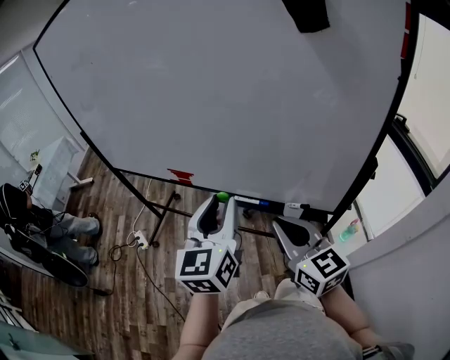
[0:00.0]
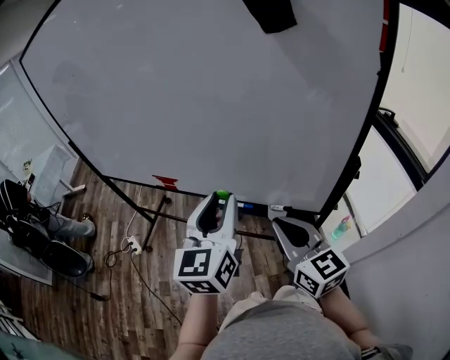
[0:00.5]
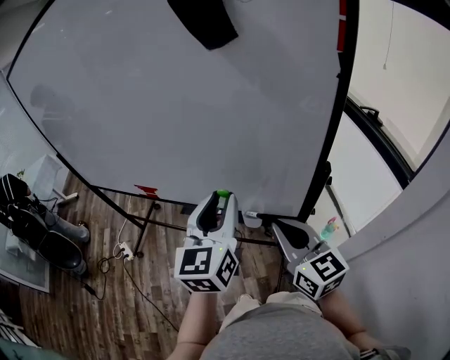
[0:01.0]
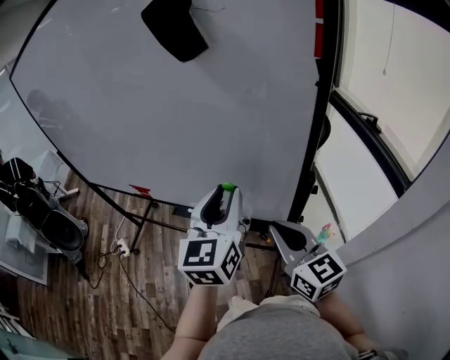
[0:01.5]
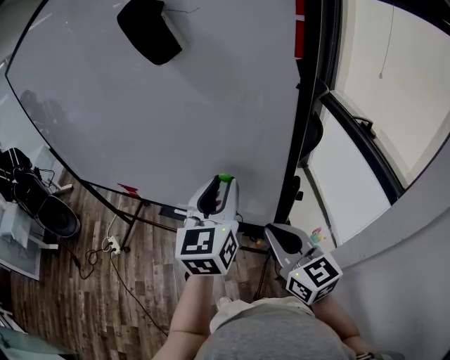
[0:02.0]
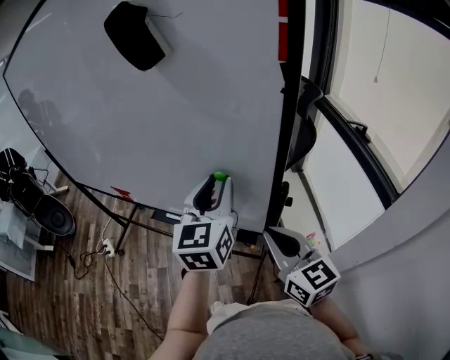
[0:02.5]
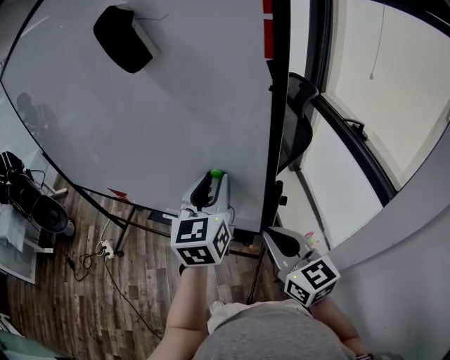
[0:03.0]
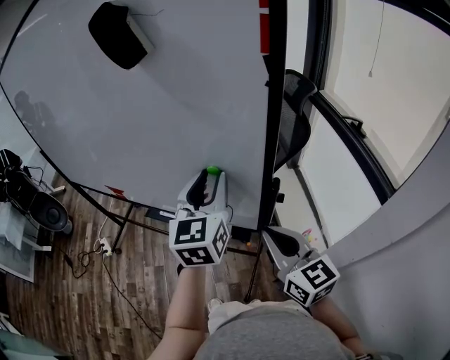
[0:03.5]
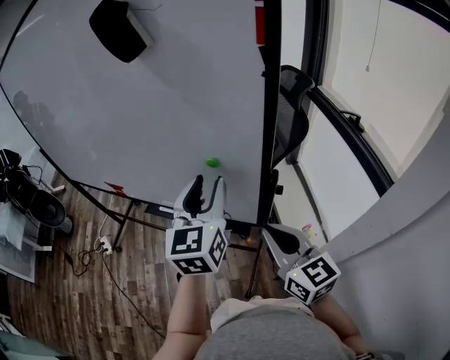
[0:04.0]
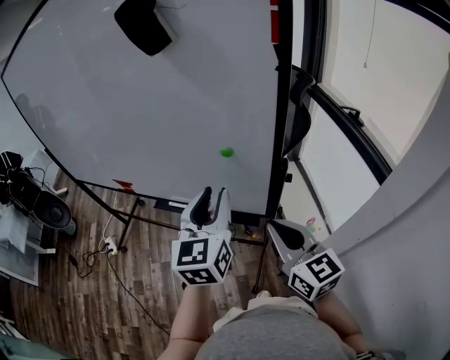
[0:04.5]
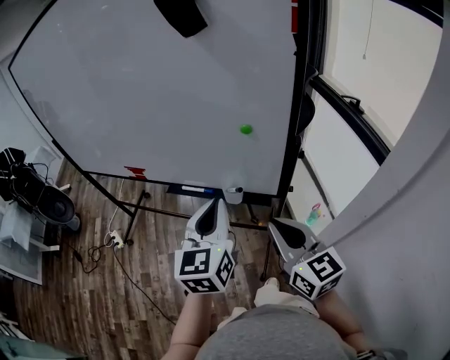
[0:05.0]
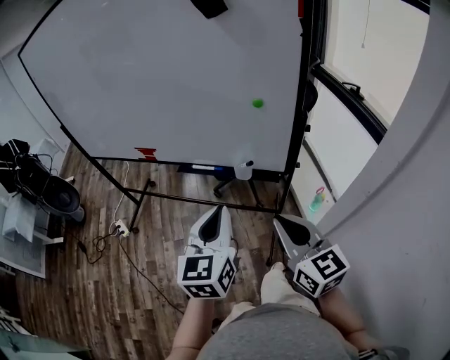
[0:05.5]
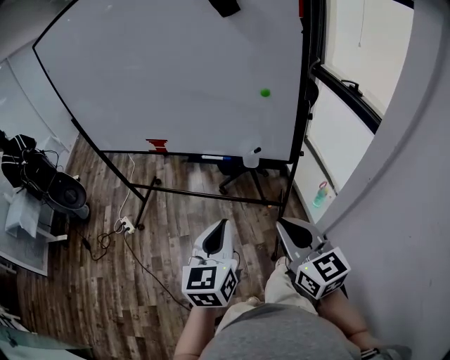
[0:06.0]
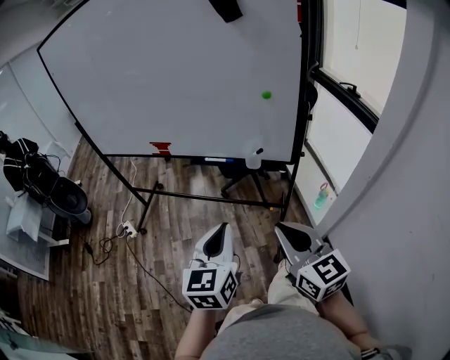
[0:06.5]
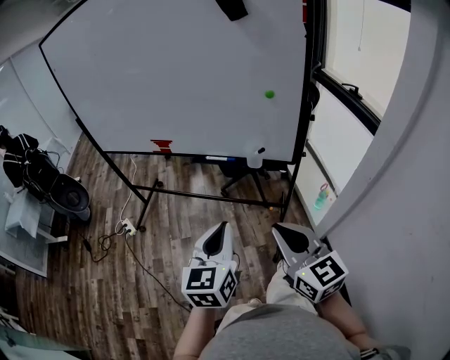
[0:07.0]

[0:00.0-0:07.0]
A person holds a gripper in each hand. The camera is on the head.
0:00.0 to 0:02.0: Both grippers travel together to the right, roughly 25 cm.
0:02.0 to 0:03.5: The grippers stay close to where they were, moving slightly.
0:03.5 to 0:05.0: The right gripper goes roughly 15 cm to the left and backward, while the left gripper goes about 20 cm backward and to the left, and closes.
0:05.0 to 0:07.0: The grippers both shift backward and to the left by about 20 cm.

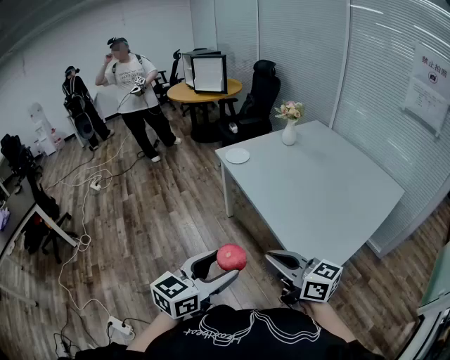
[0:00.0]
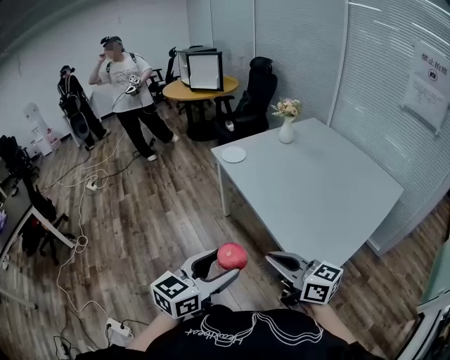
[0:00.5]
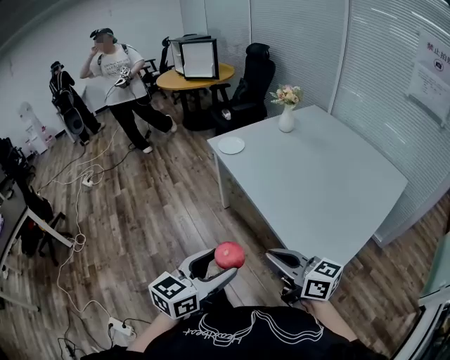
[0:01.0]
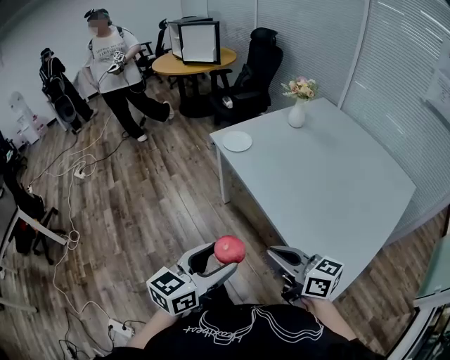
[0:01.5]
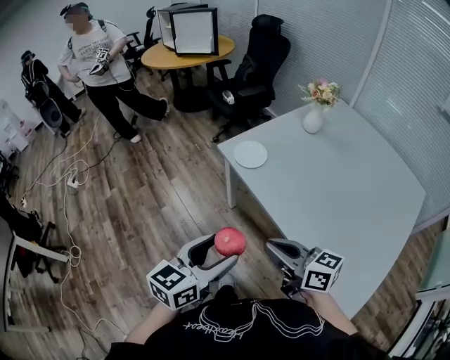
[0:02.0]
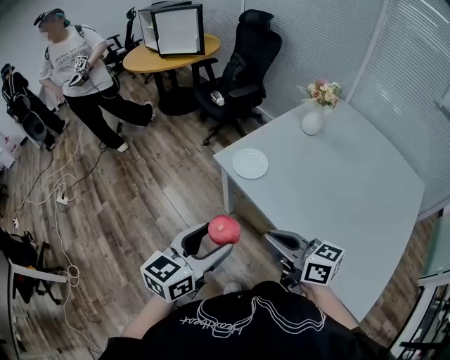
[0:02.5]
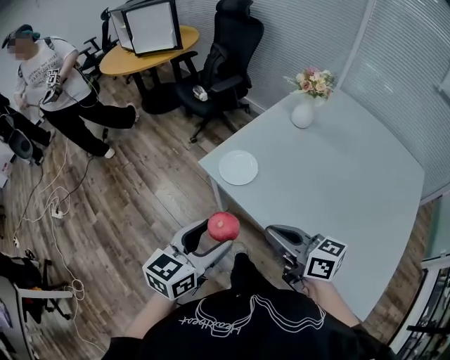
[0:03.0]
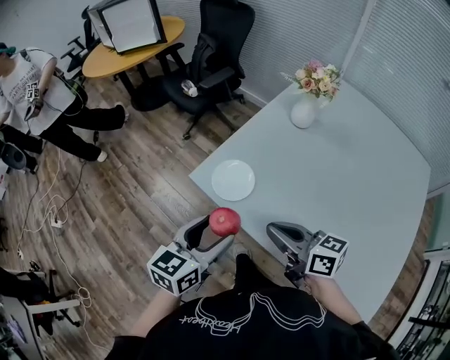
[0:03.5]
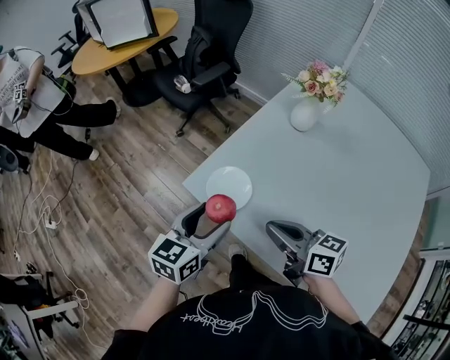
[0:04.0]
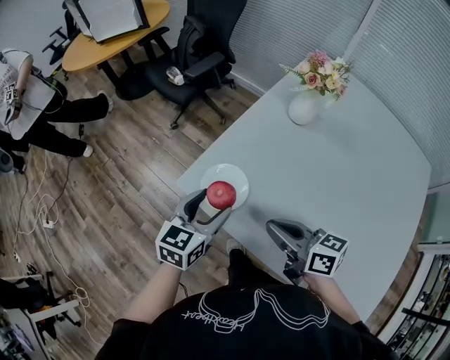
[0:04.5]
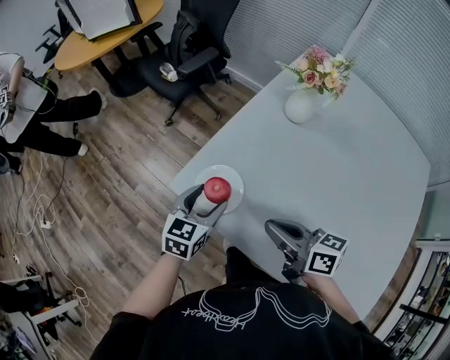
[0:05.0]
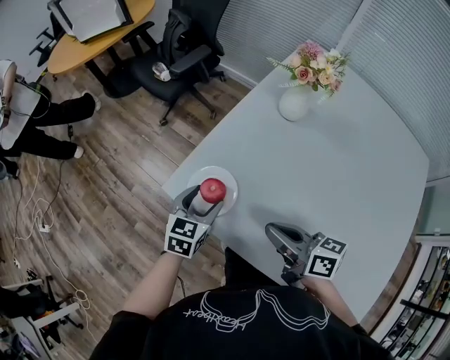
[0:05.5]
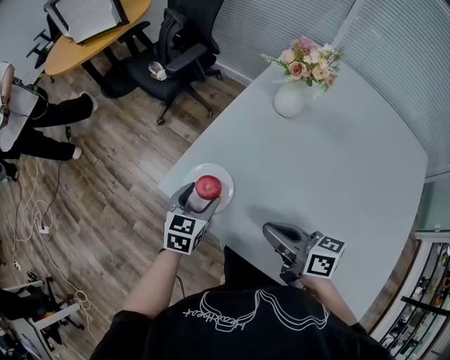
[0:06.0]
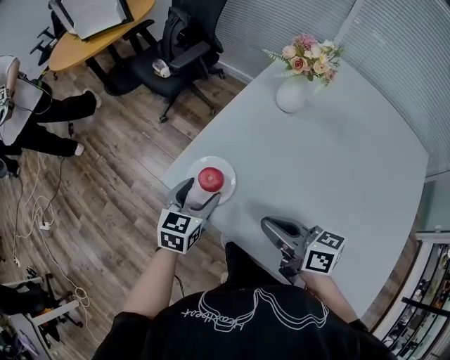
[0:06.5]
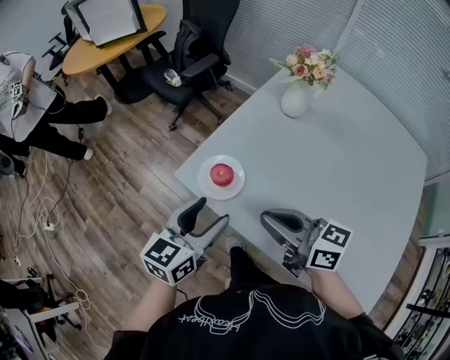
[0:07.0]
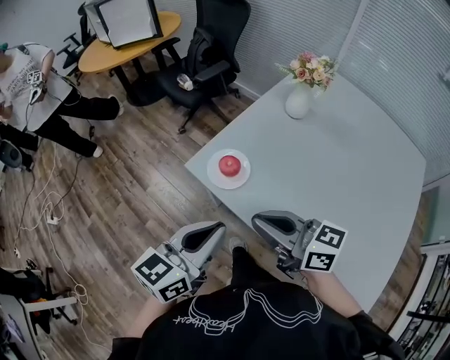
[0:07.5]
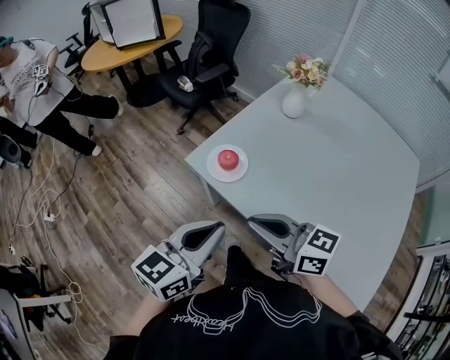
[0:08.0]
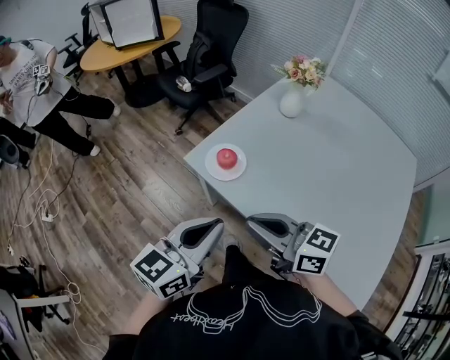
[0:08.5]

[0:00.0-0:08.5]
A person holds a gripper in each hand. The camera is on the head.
0:00.0 to 0:02.0: The two grippers go some 35 cm forward.
0:02.0 to 0:04.0: The grippers both shift forward by about 35 cm.
0:04.0 to 0:06.5: The left gripper shifts about 15 cm downward and forward.
0:06.5 to 0:08.5: The left gripper heads backward and upward, covering roughly 30 cm, swivels about 30 degrees, and closes, while the right gripper shifts about 20 cm backward, upward and to the left, and swivels about 20 degrees.

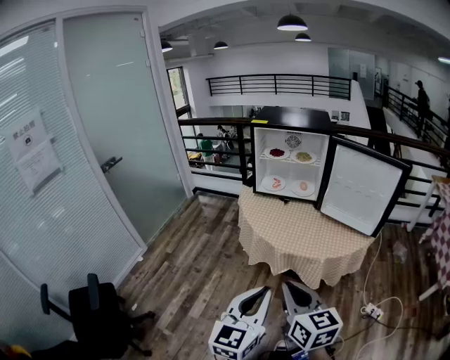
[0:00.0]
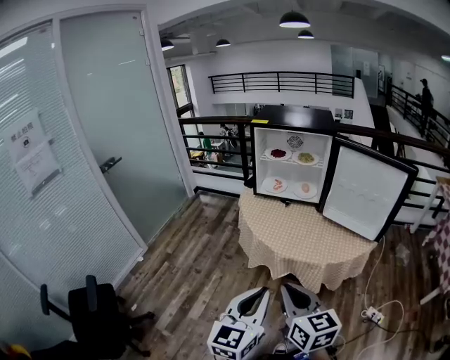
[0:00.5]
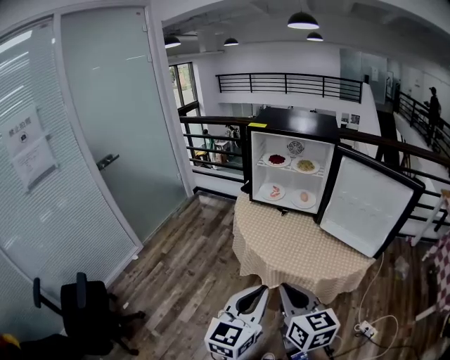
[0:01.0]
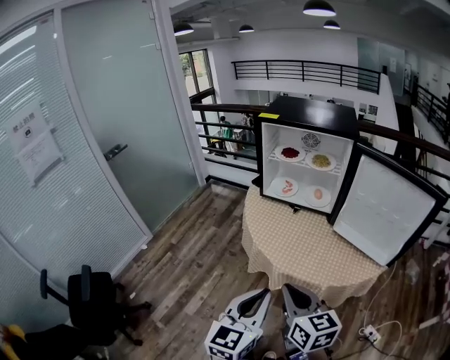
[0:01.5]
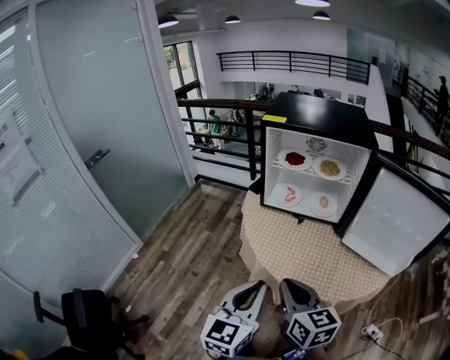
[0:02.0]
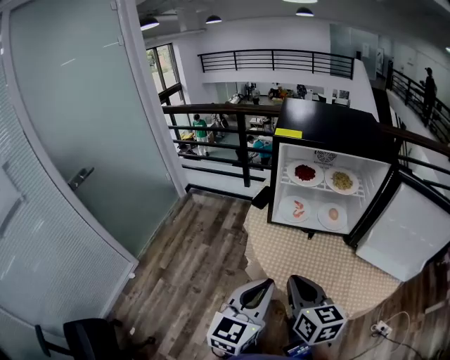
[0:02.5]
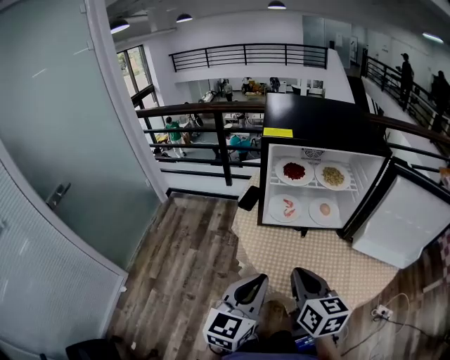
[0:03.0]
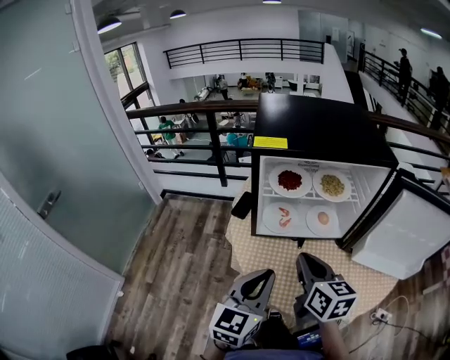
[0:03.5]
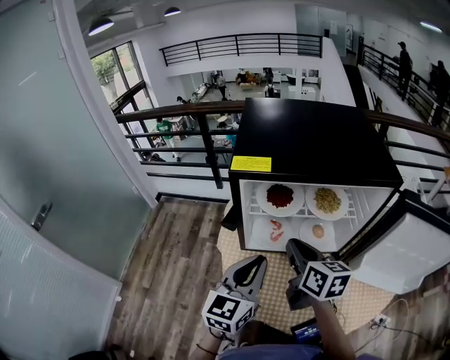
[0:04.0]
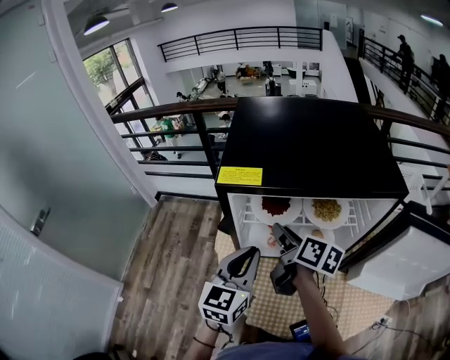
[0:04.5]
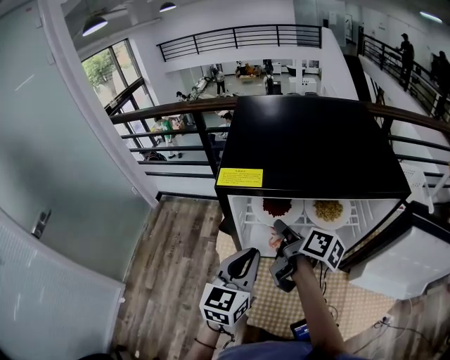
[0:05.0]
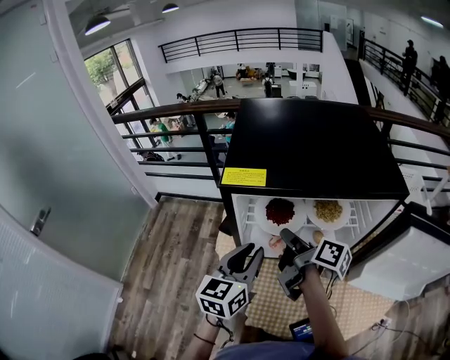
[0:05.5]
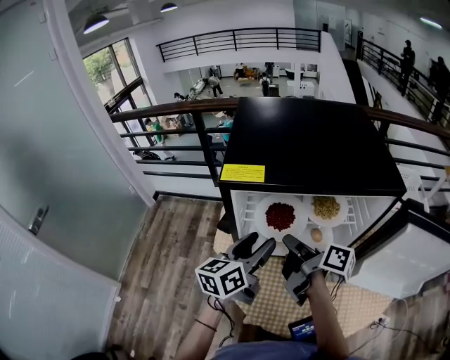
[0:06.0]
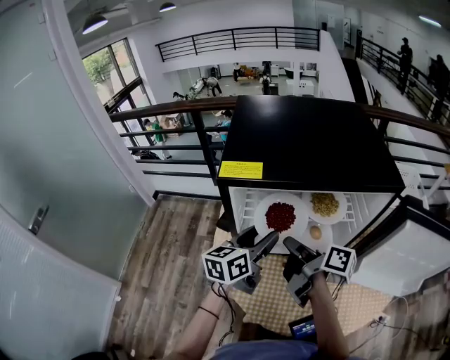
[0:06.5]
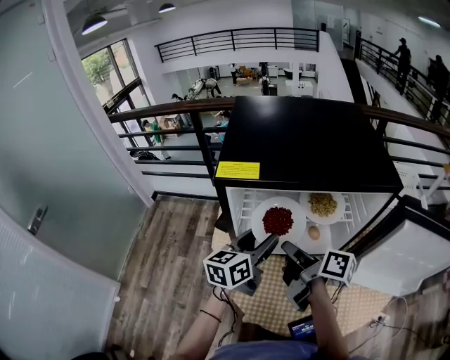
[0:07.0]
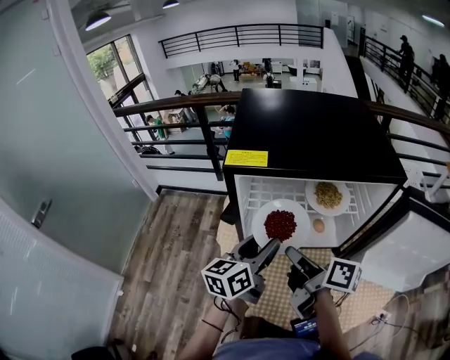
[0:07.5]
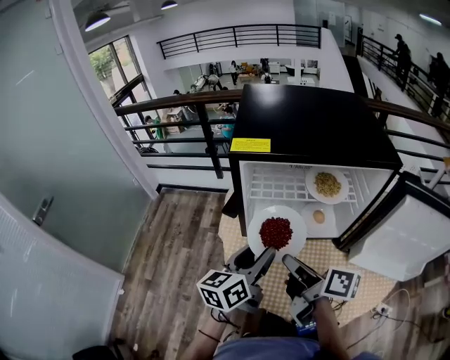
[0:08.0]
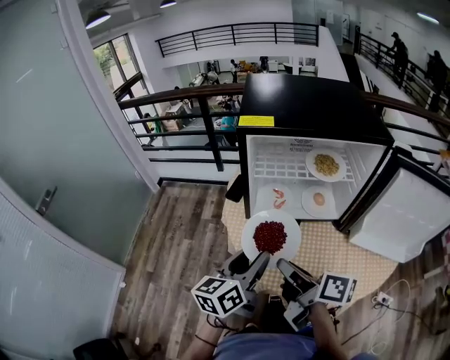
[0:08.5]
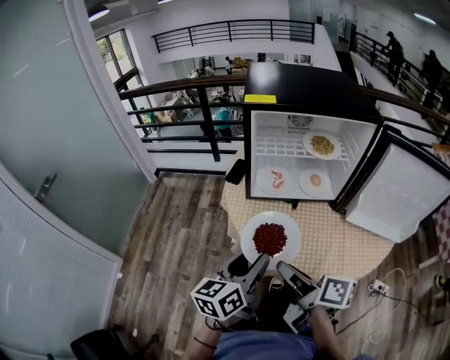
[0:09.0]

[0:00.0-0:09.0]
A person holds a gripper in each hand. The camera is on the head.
0:00.0 to 0:02.0: Both grippers travel together forward, about 25 cm.
0:02.0 to 0:04.5: The two grippers go approximately 40 cm forward. The right gripper twists roughly 40 degrees clockwise, seen from behind, and opens.
0:04.5 to 0:07.0: The left gripper is displaced forward by about 5 cm, turns by some 30 degrees, and opens. Meanwhile the right gripper shifts about 5 cm backward, and closes up.
0:07.0 to 0:09.0: The grippers both shift backward by about 30 cm.

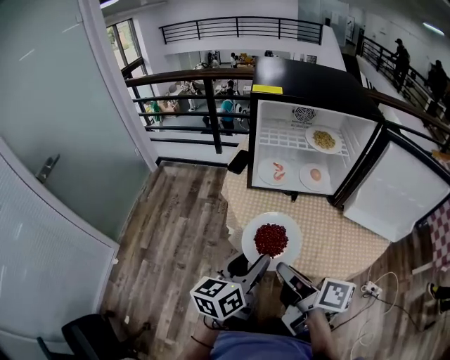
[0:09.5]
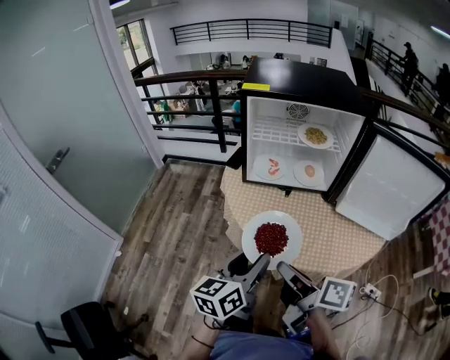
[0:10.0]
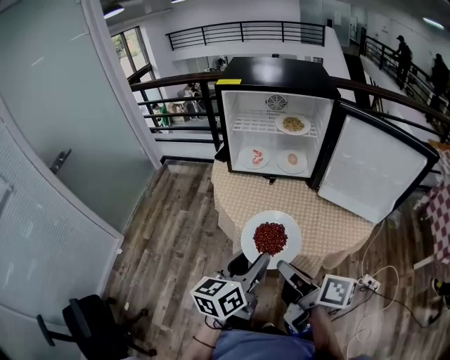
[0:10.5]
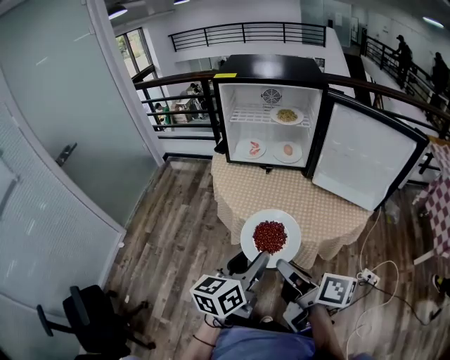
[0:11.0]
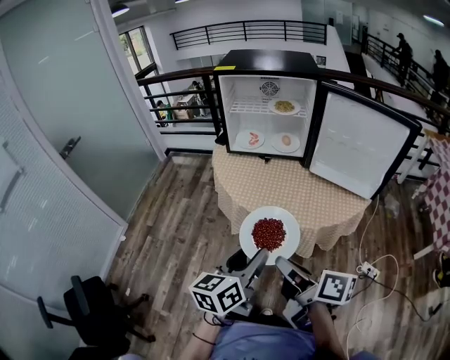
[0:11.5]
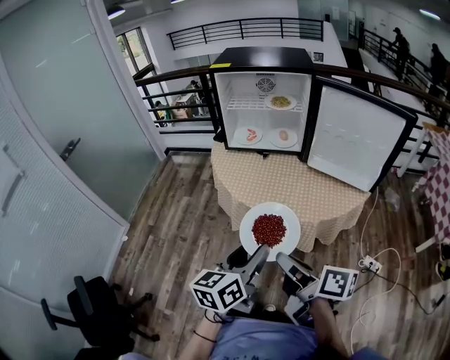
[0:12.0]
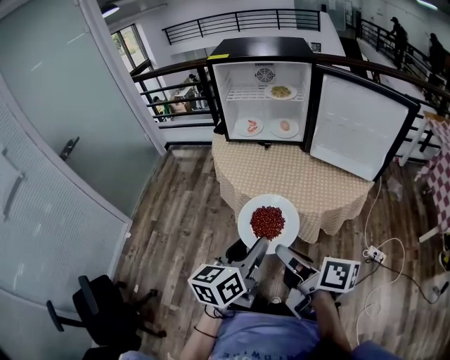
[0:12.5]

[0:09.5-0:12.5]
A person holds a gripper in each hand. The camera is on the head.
0:09.5 to 0:11.0: Both grippers move backward and to the right, roughly 20 cm.
0:11.0 to 0:12.5: Both grippers travel together backward, approximately 5 cm.
